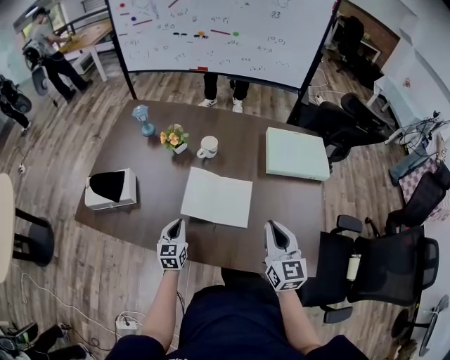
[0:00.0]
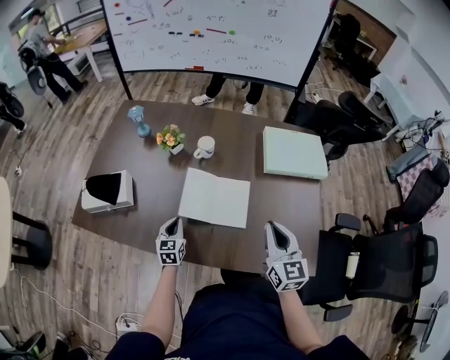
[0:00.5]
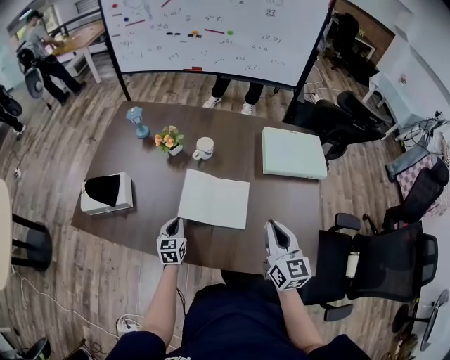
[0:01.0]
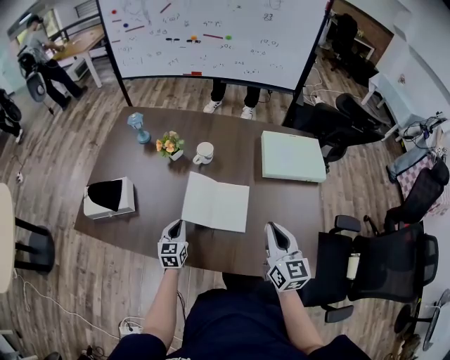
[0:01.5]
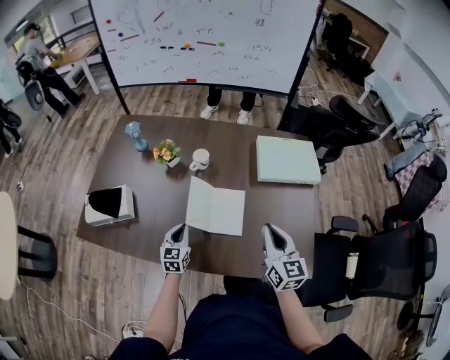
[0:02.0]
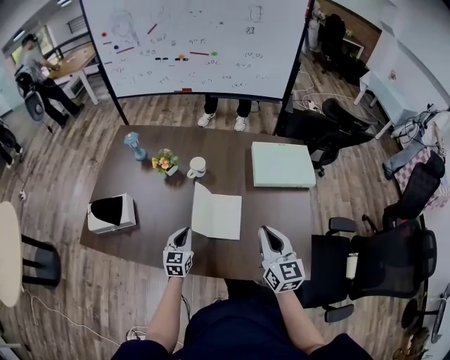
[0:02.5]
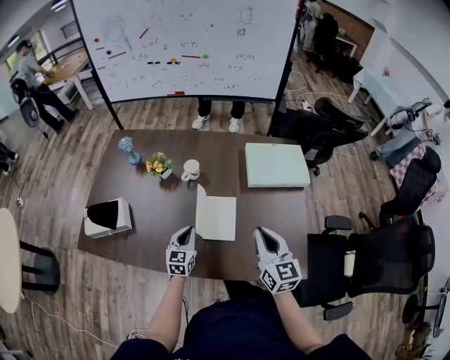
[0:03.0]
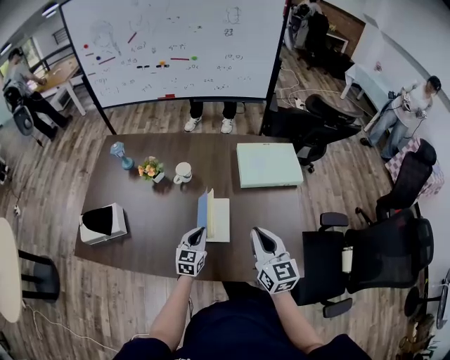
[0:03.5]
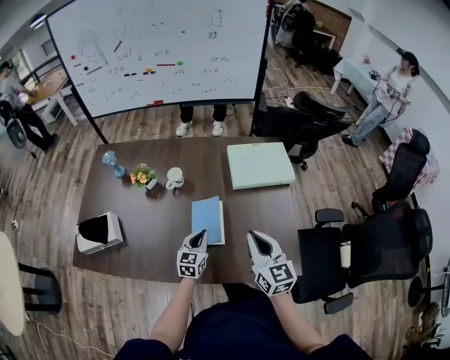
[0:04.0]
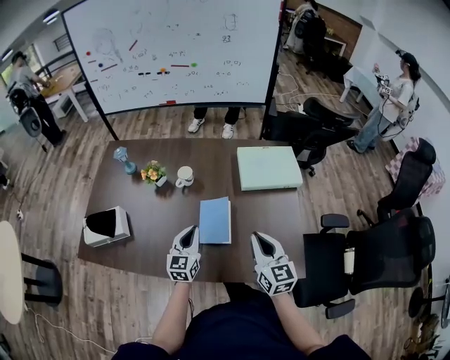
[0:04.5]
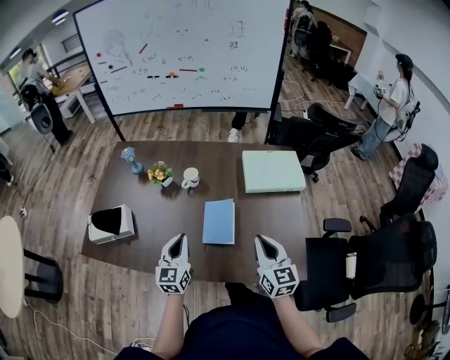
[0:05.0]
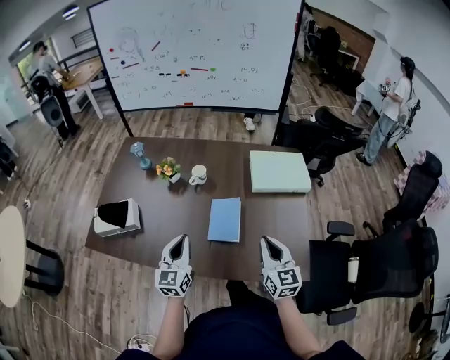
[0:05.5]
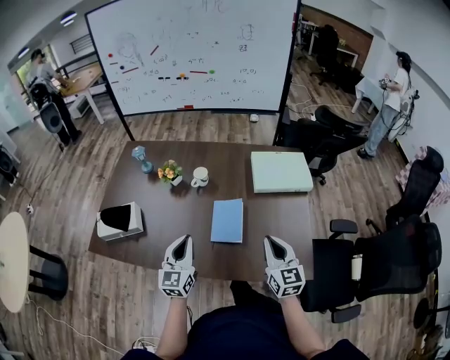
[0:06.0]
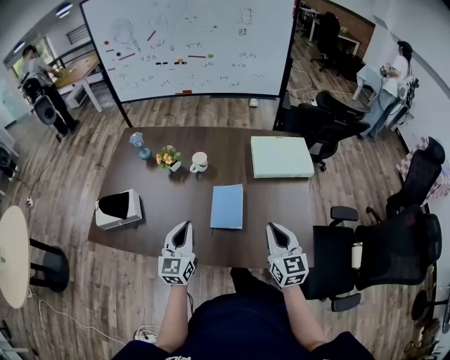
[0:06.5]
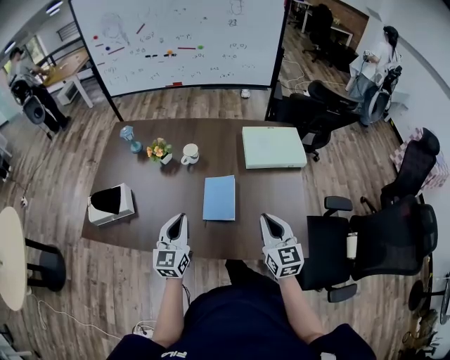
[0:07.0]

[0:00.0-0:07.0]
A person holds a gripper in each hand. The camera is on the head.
0:00.0 to 0:02.0: There are only small adjustments of the grippers.
0:02.0 to 0:03.5: The left gripper goes roughly 15 cm to the right.
0:03.5 to 0:05.0: The left gripper moves upward, to the left and backward, about 15 cm.
0:05.0 to 0:07.0: The grippers make only small movements.

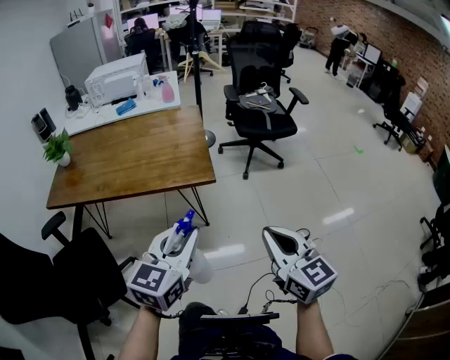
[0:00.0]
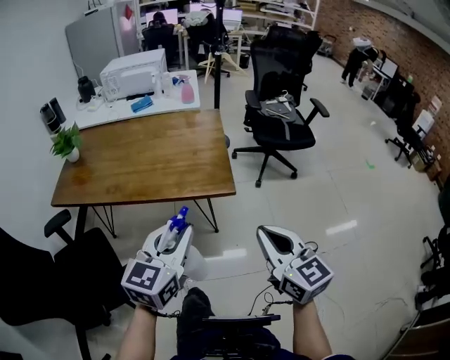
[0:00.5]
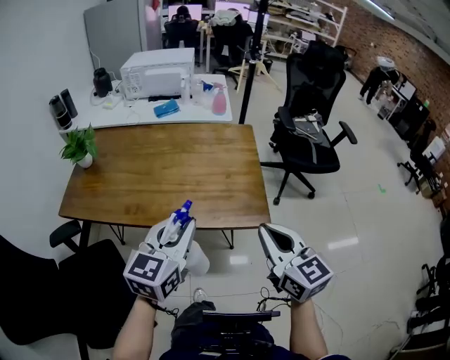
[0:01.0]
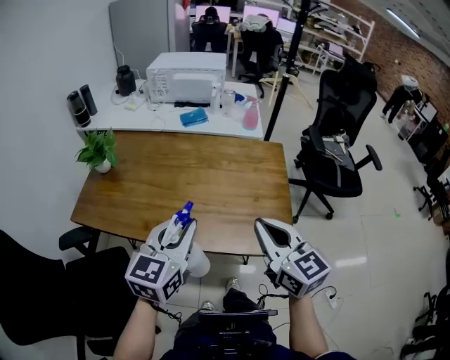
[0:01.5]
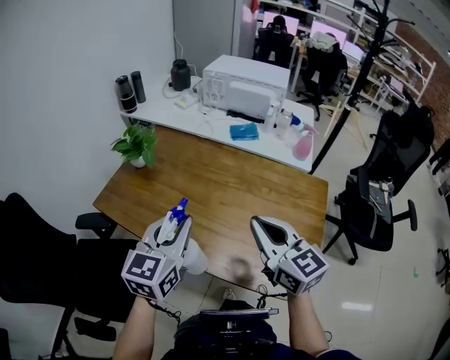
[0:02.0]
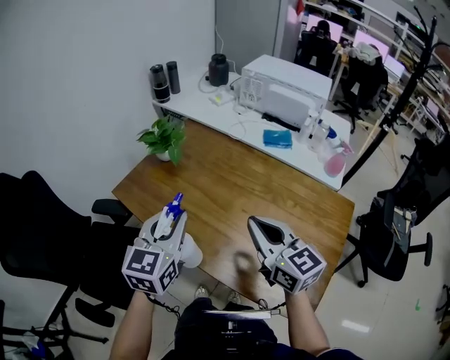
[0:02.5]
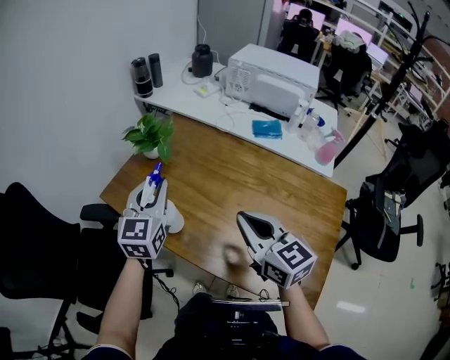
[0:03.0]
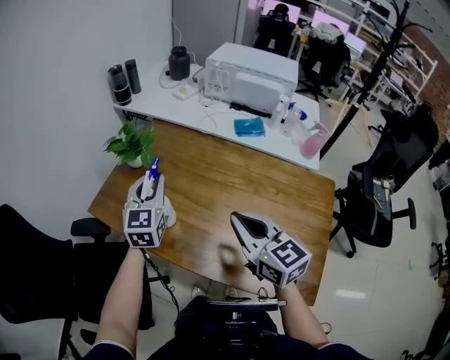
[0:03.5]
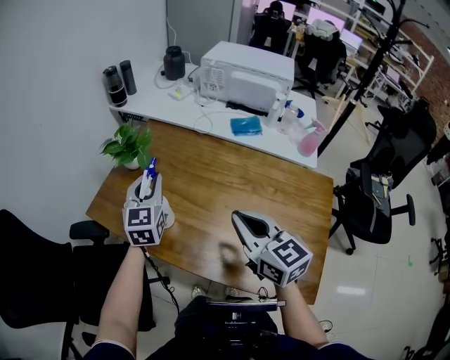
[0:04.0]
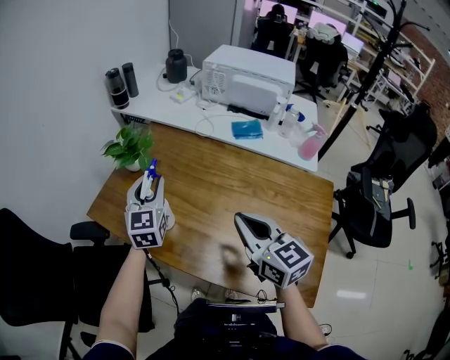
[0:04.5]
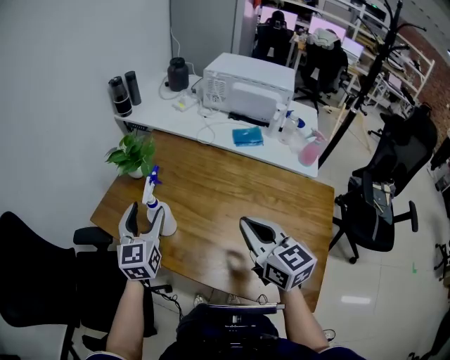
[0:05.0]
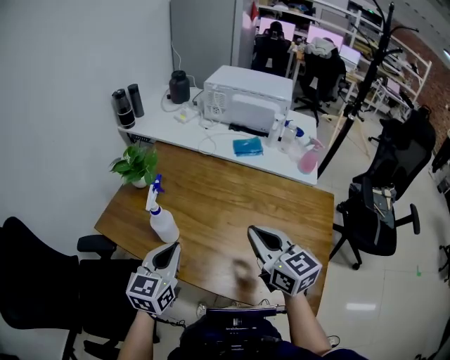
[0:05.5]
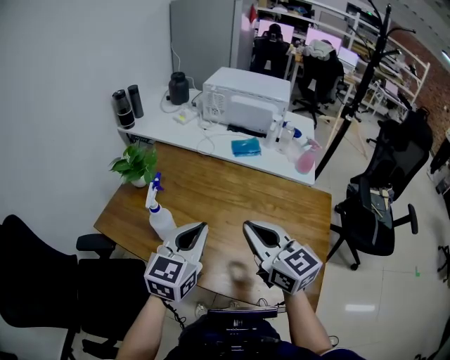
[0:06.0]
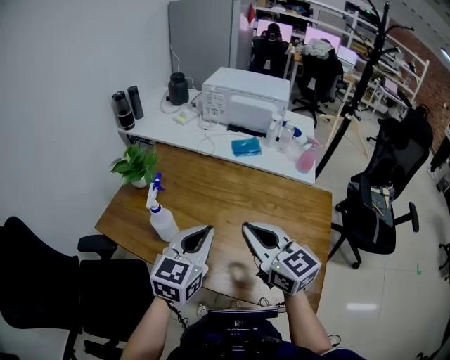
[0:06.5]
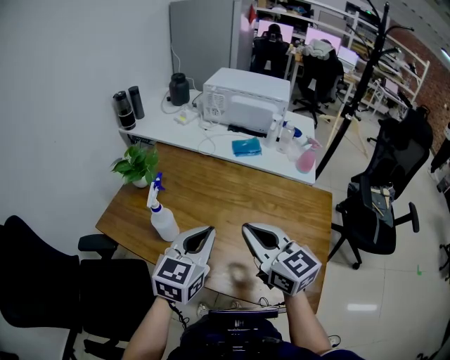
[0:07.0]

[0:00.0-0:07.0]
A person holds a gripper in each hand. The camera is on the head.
0:00.0 to 0:02.0: The two grippers travel together, some 50 cm. The left gripper rotates approximately 40 degrees. Meanwhile the right gripper rotates about 30 degrees.
0:02.0 to 0:03.5: The left gripper travels forward by some 20 cm; the right gripper travels forward and to the left by roughly 10 cm.
0:03.5 to 0:05.0: The left gripper travels backward by about 5 cm, and opens up.
0:05.0 to 0:07.0: The left gripper goes approximately 20 cm to the right and backward, swivels some 30 degrees, and closes its fingers.

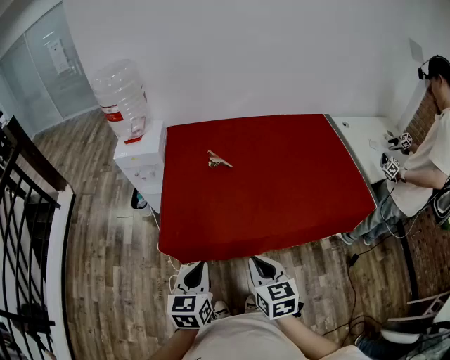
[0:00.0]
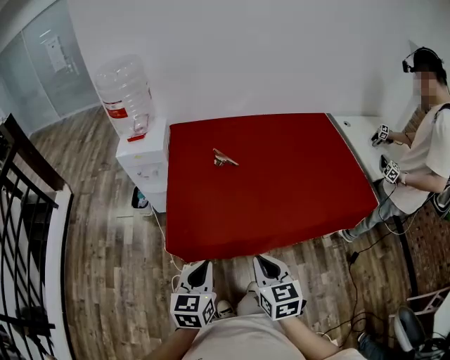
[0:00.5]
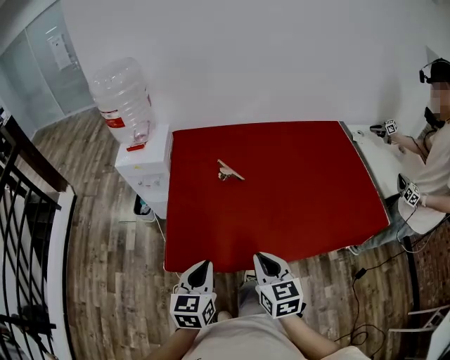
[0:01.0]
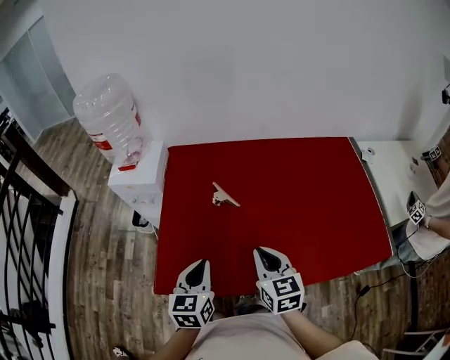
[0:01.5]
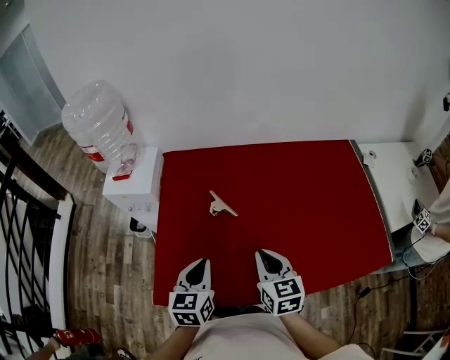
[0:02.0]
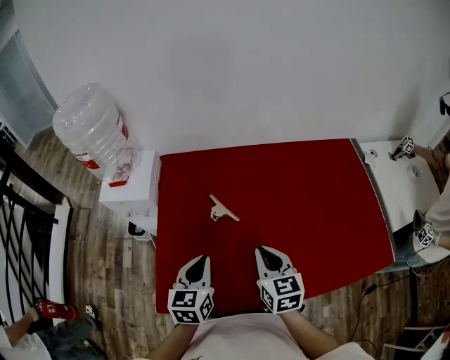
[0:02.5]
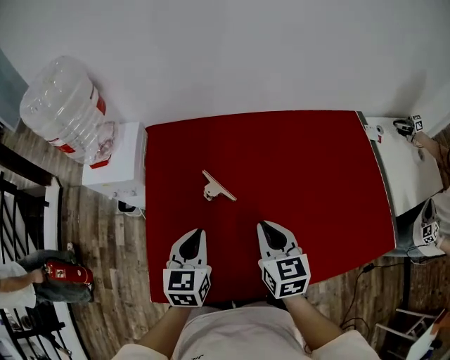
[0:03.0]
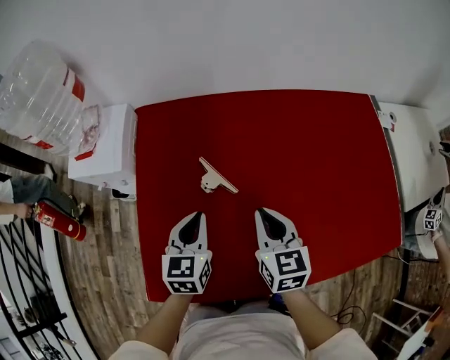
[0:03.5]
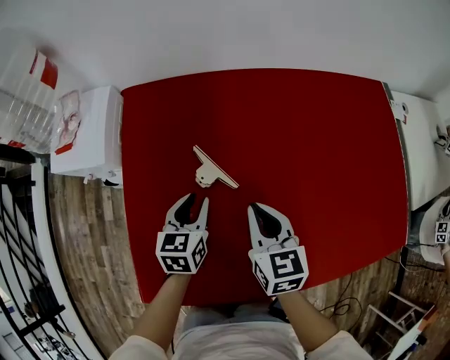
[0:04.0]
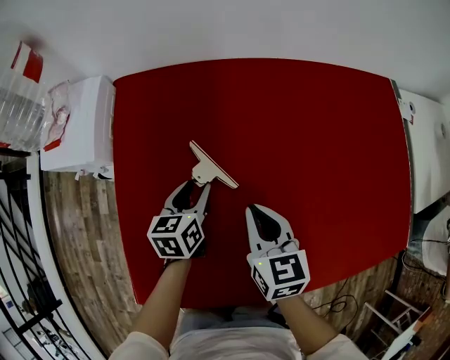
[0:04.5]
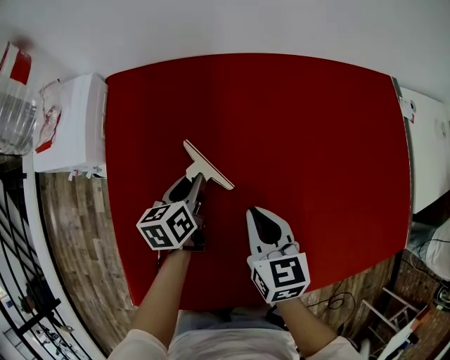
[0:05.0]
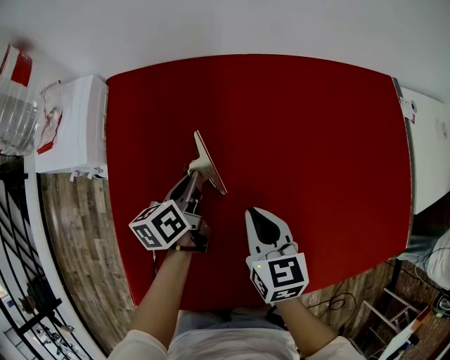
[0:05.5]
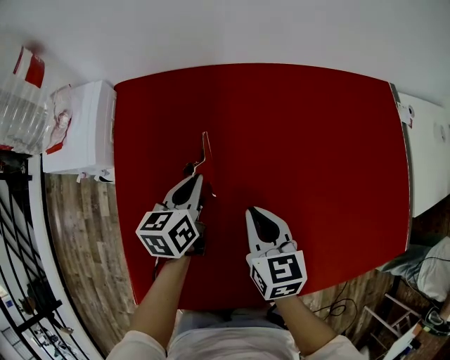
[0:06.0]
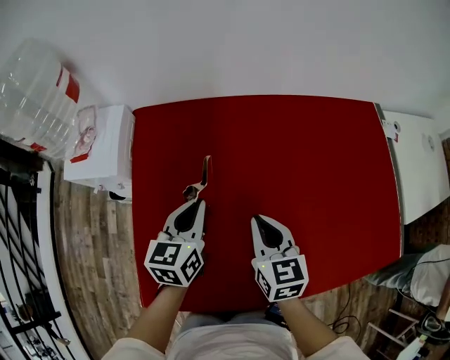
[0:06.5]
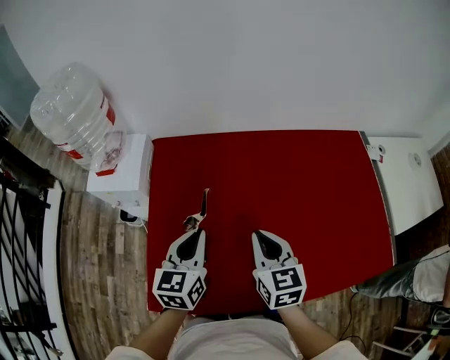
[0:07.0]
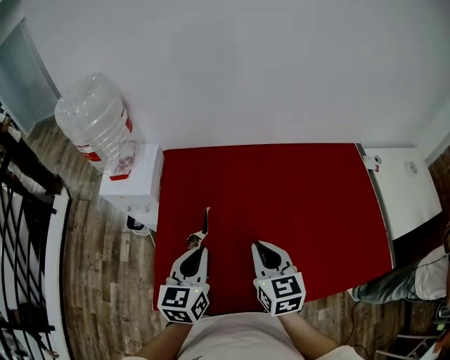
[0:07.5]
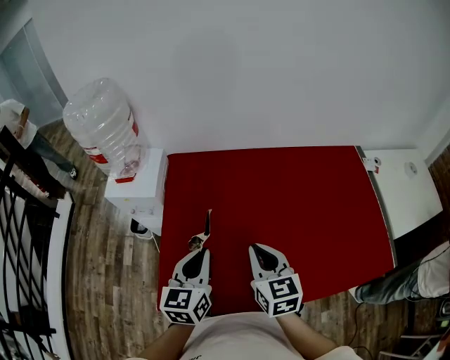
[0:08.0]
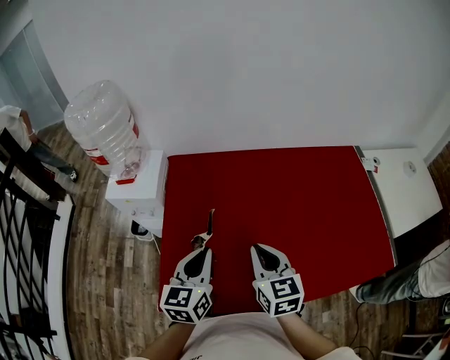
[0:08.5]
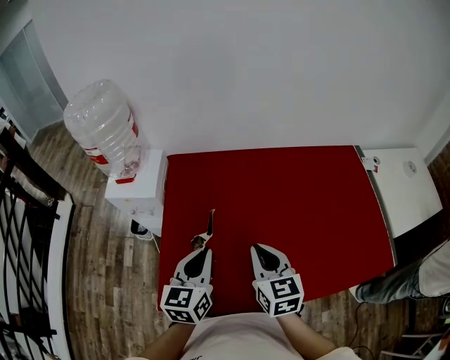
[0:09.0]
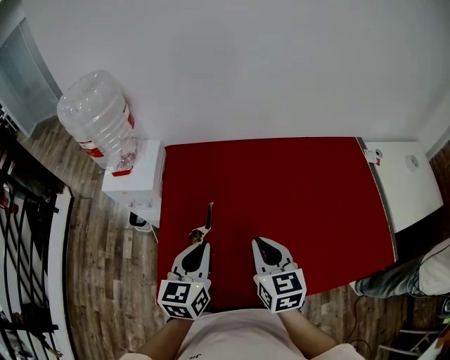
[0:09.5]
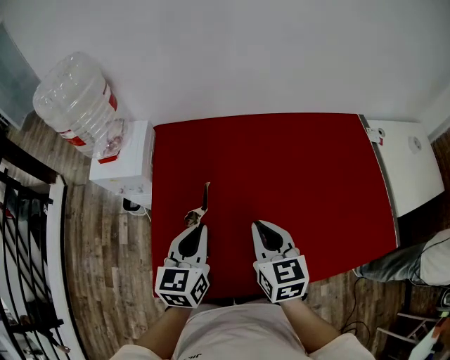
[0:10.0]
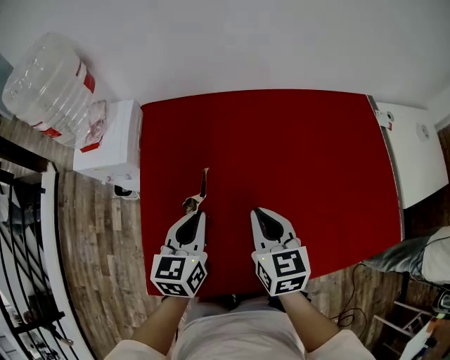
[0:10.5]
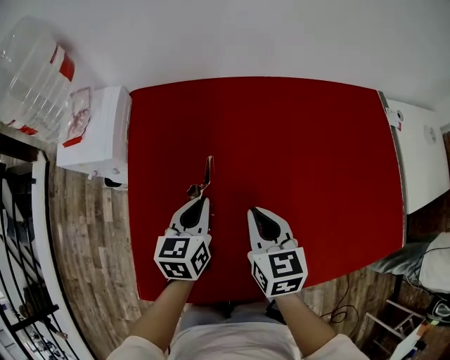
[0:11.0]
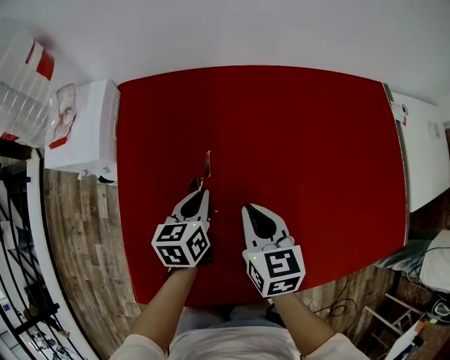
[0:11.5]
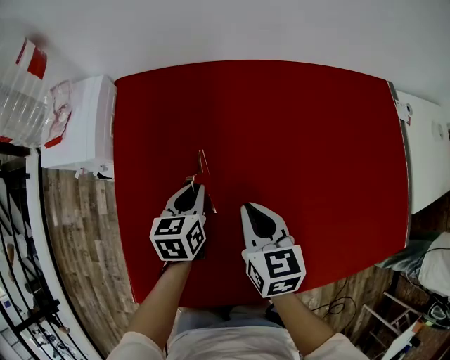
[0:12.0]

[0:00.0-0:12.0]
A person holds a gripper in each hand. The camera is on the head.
0:00.0 to 0:02.0: Both grippers move forward, about 30 cm.
0:02.0 to 0:04.0: Both grippers move forward and downward, some 25 cm. The left gripper opens up.
0:04.0 to 0:06.0: The left gripper heads forward, covering roughly 5 cm, and closes its fingers.
0:06.0 to 0:08.0: The two grippers go roughly 30 cm upward and backward. The left gripper swivels about 20 degrees.
0:08.0 to 0:10.0: The left gripper changes place by roughly 5 cm.
0:10.0 to 0:12.0: Both grippers move downward and forward, some 25 cm. The left gripper swivels about 20 degrees.

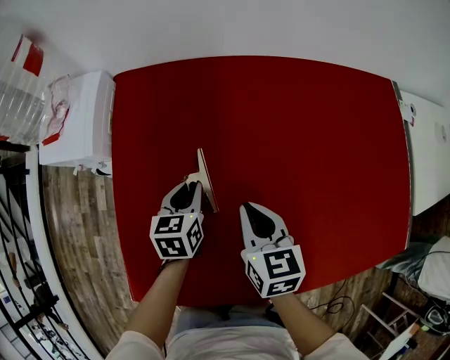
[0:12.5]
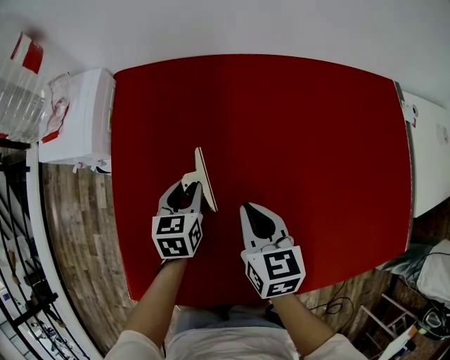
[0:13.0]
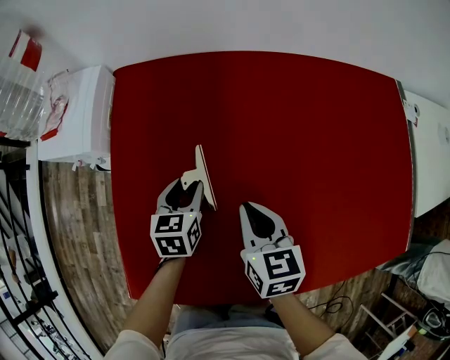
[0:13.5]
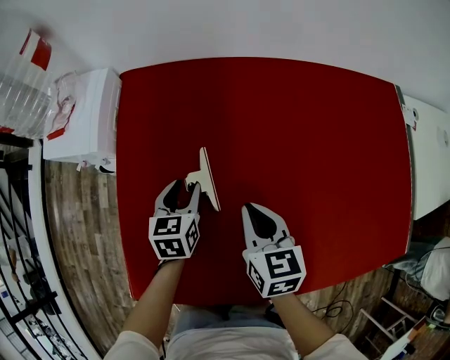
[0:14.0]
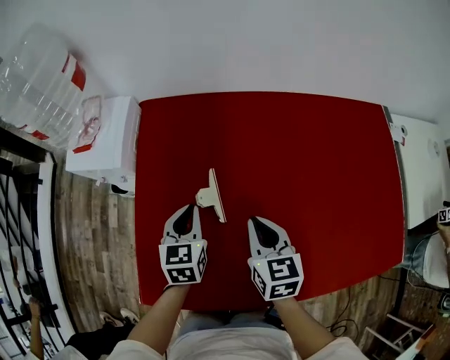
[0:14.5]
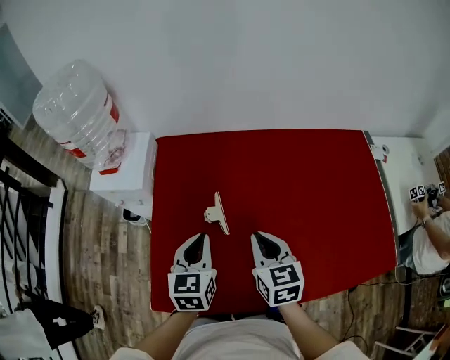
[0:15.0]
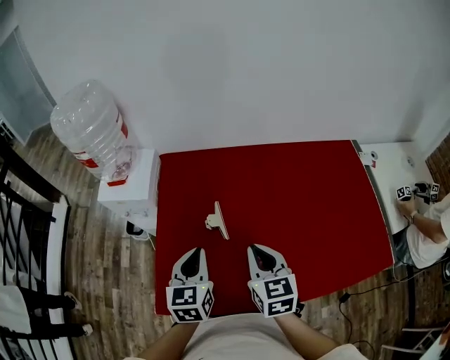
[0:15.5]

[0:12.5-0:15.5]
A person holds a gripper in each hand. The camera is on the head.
0:12.5 to 0:14.0: The left gripper opens up.
0:14.0 to 0:15.5: The two grippers go about 25 cm upward and backward. The left gripper closes up.
